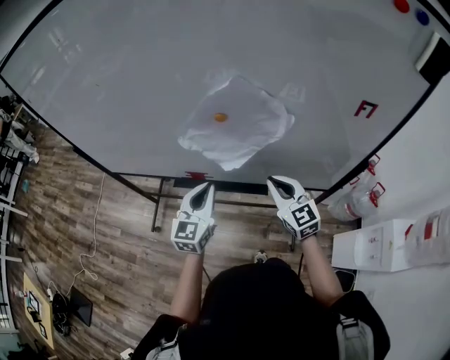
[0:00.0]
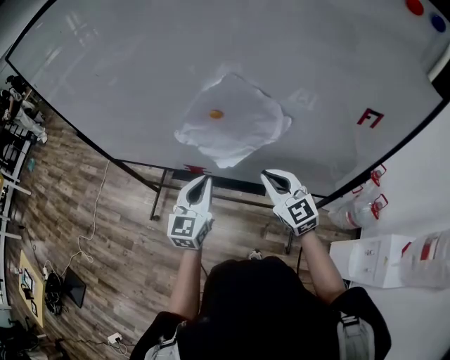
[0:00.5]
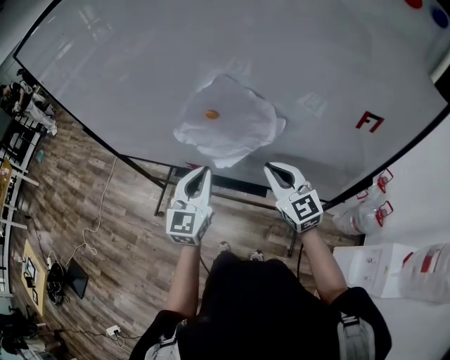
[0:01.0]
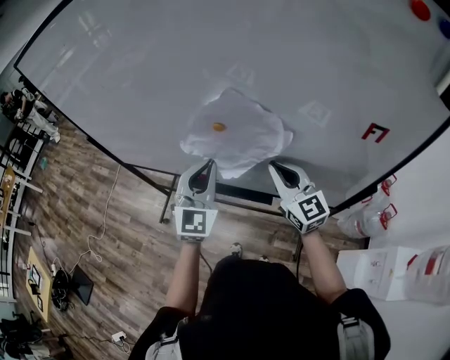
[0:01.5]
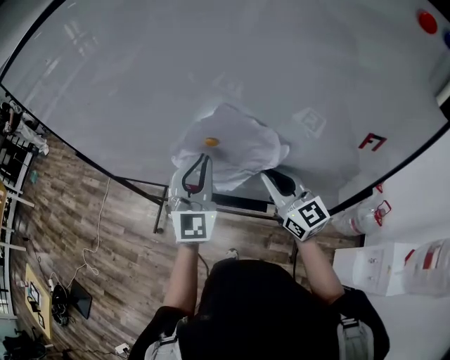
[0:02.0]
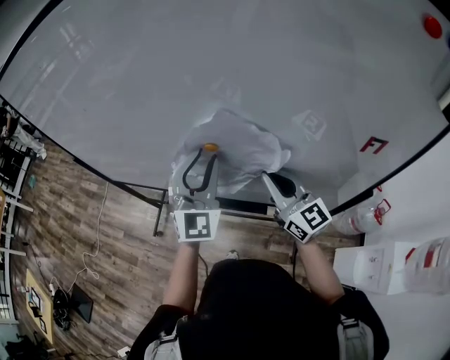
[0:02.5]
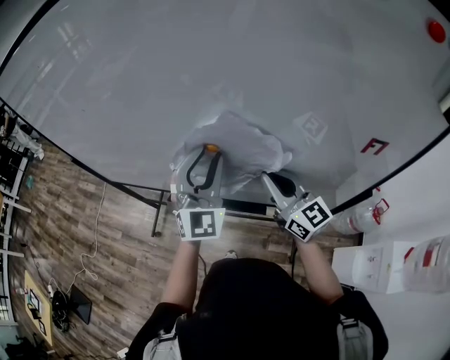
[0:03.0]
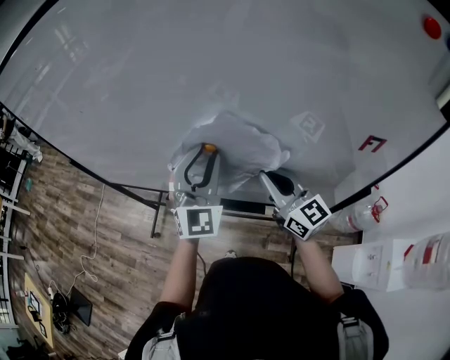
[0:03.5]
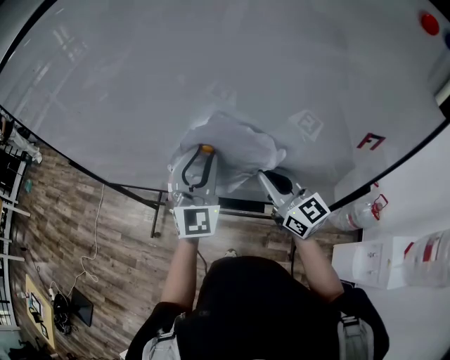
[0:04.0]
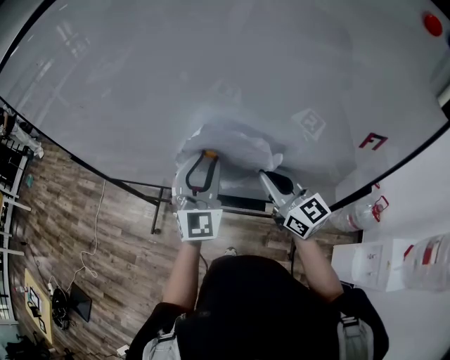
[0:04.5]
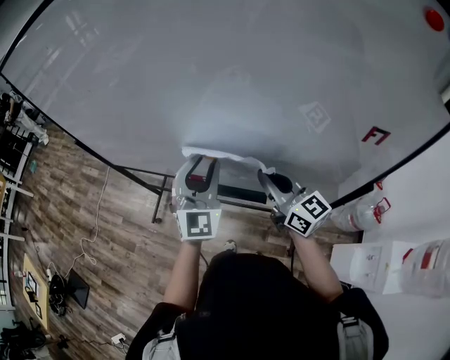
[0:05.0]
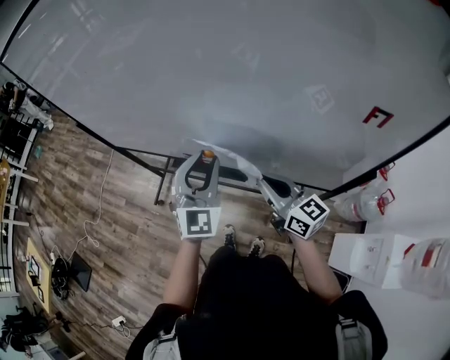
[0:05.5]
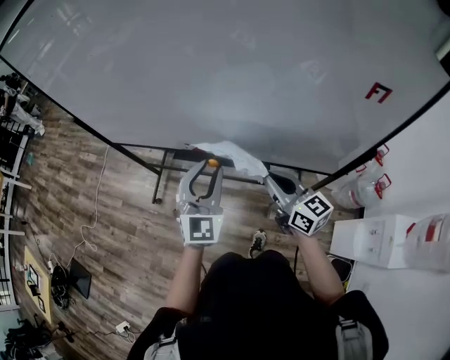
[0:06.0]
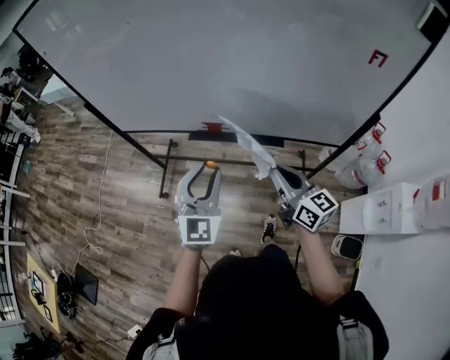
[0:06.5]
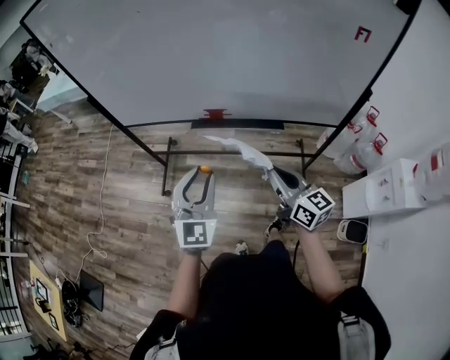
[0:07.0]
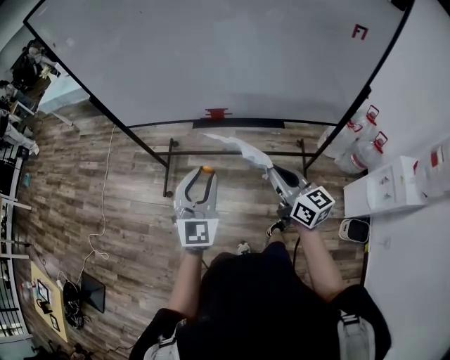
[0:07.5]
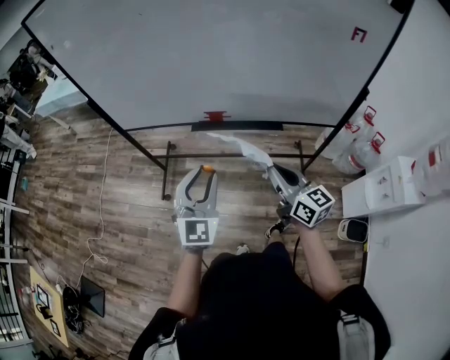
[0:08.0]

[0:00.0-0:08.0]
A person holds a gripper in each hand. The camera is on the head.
0:00.0 to 0:02.0: The right gripper is displaced upward and forward by approximately 10 cm, and turns by some 20 degrees. The left gripper heads upward, forward and to the right, covering about 15 cm, and rotates approximately 40 degrees.
0:02.0 to 0:04.0: The left gripper opens up.
0:04.0 to 0:06.0: The right gripper goes some 15 cm backward and downward; the left gripper travels backward, downward and to the left by approximately 20 cm.
0:06.0 to 0:08.0: The right gripper travels backward and to the left by about 25 cm. The left gripper moves to the left and backward, some 25 cm.

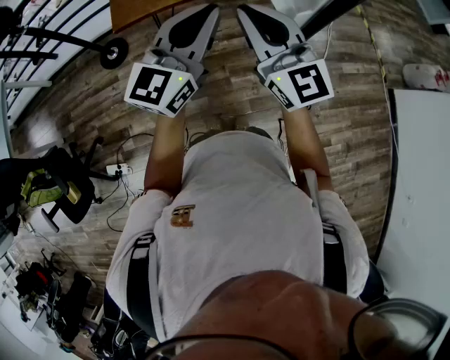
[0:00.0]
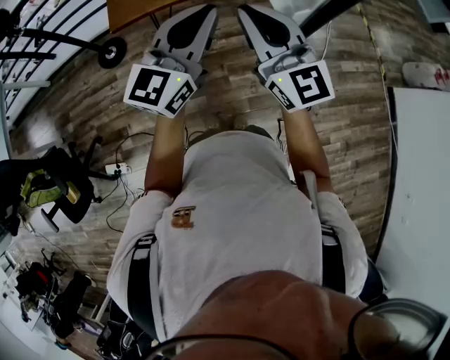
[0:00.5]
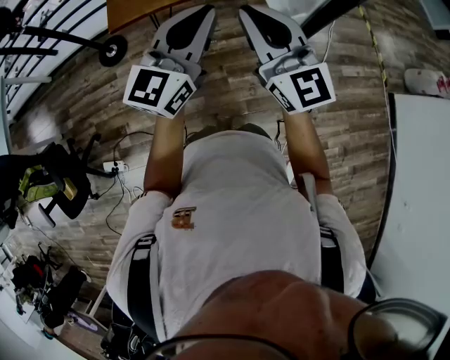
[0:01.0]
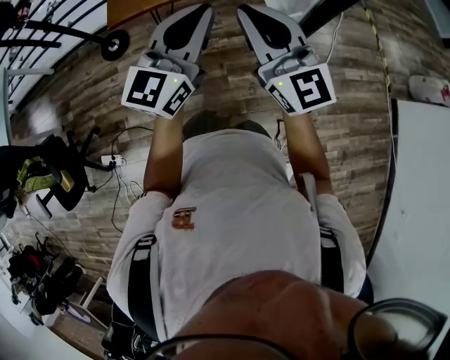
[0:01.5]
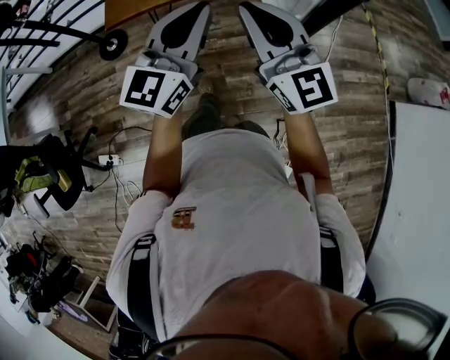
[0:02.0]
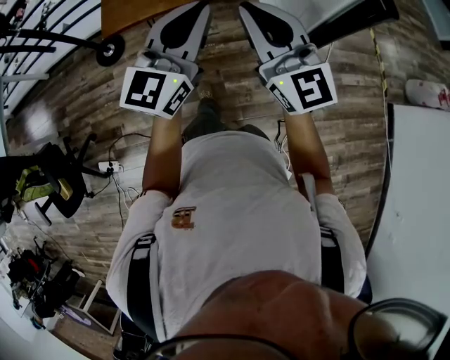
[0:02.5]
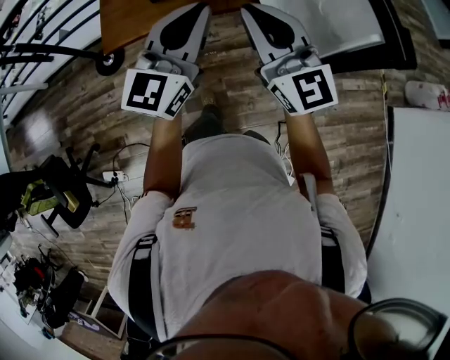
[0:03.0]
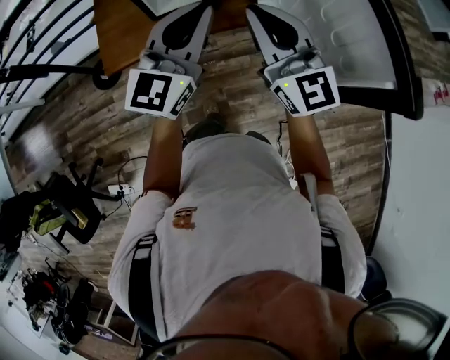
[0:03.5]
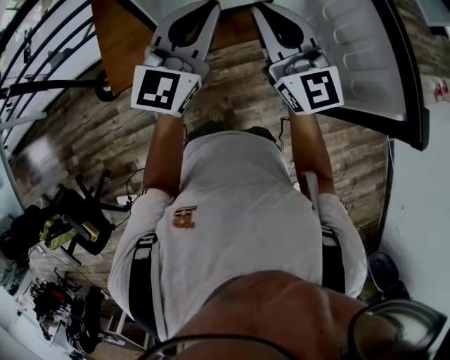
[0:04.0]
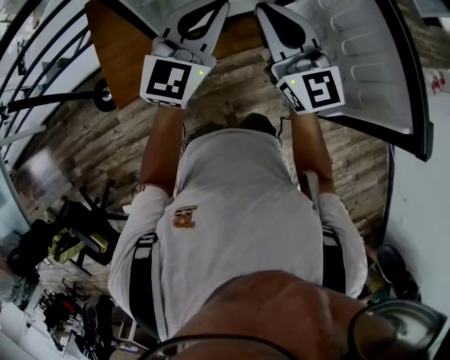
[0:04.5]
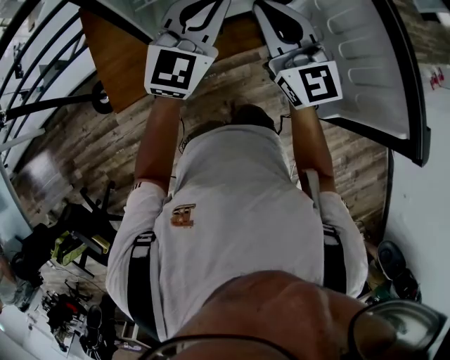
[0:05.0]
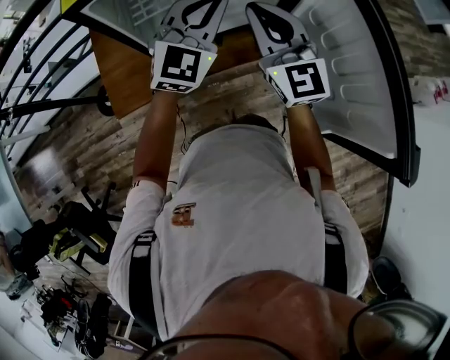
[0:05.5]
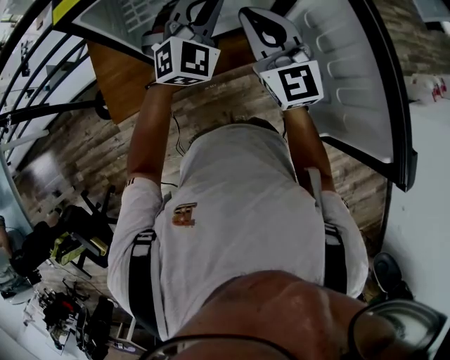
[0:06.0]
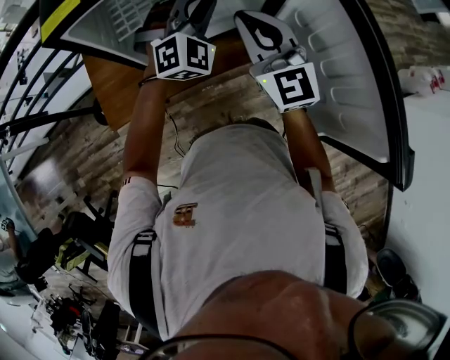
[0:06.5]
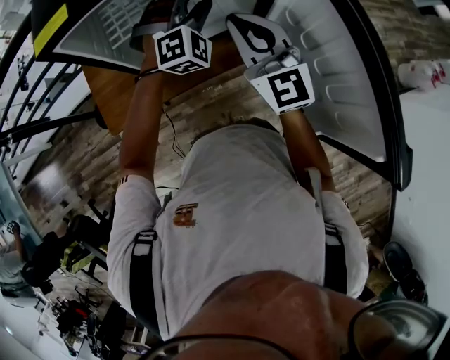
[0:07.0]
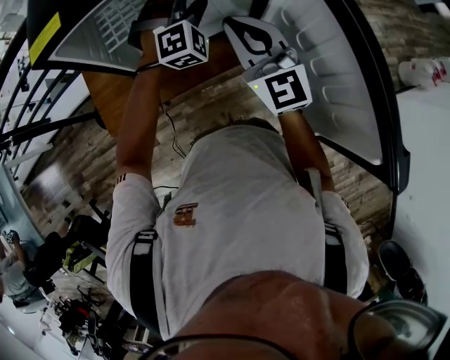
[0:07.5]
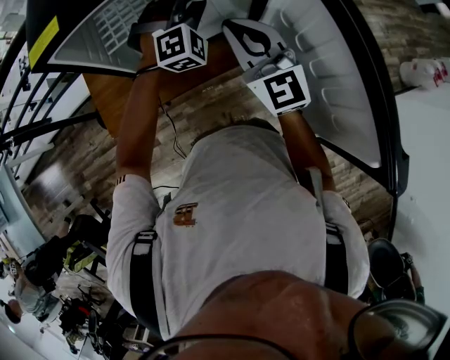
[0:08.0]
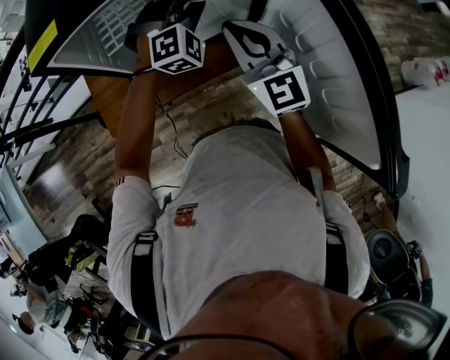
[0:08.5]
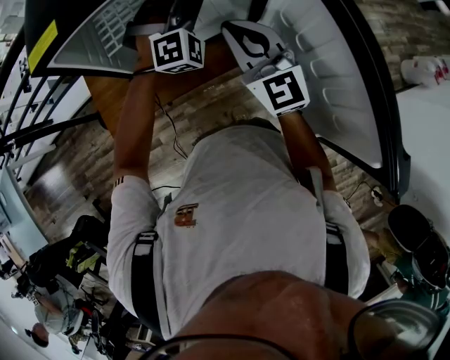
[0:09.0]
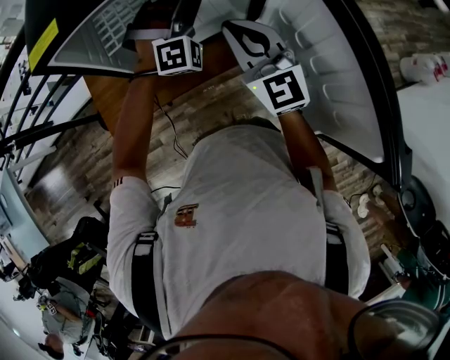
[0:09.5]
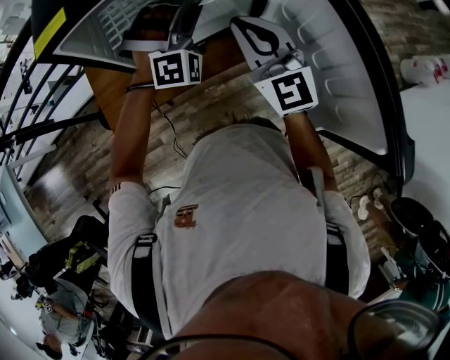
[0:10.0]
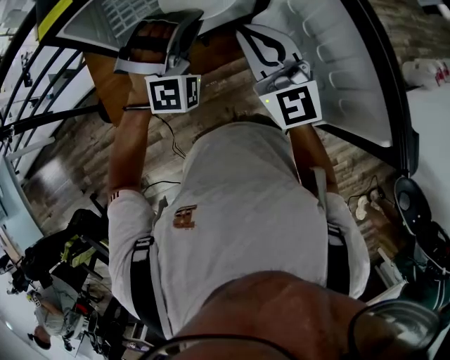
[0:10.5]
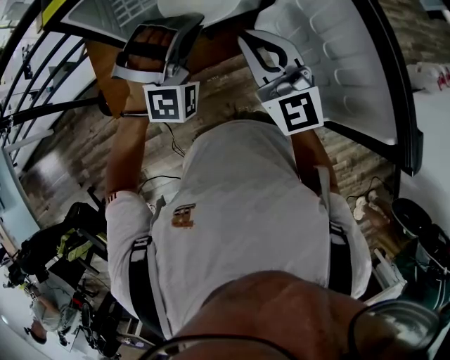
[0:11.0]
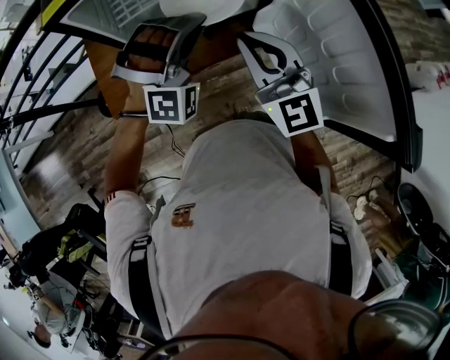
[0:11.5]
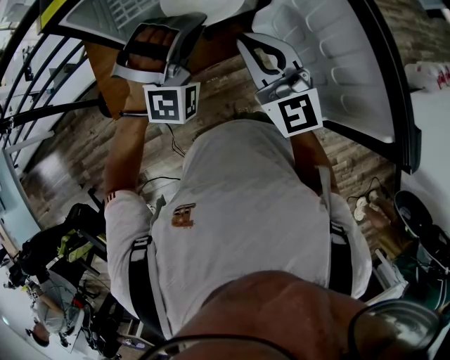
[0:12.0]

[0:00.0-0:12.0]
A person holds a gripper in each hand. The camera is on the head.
0:00.0 to 0:02.0: Both grippers travel together to the right, roughly 10 cm.
0:02.0 to 0:04.0: Both grippers move forward, approximately 35 cm.
0:04.0 to 0:06.0: The grippers both shift forward by approximately 15 cm. The left gripper turns by some 40 degrees.
0:06.0 to 0:08.0: The left gripper shifts approximately 10 cm downward and forward, and rotates roughly 30 degrees.
0:08.0 to 0:10.0: The left gripper changes place by roughly 5 cm.
0:10.0 to 0:12.0: Both grippers travel together backward, roughly 10 cm.

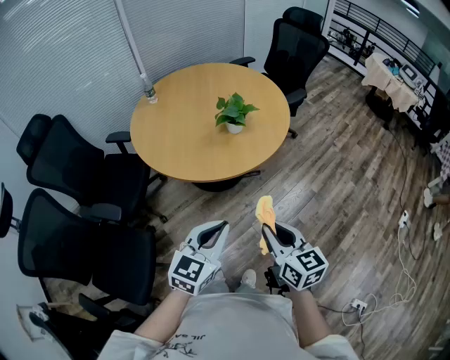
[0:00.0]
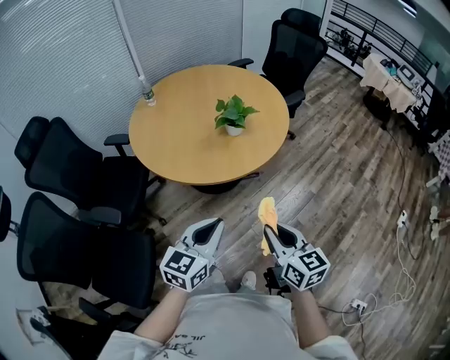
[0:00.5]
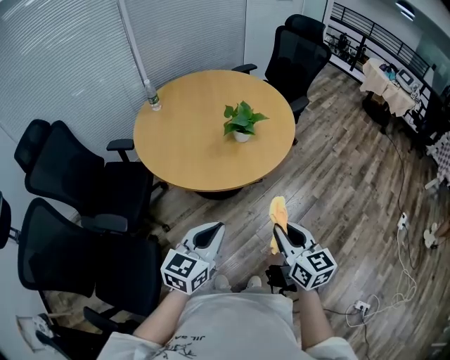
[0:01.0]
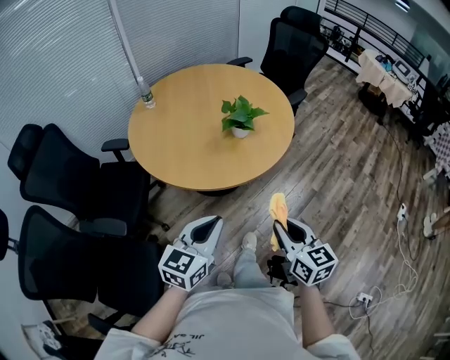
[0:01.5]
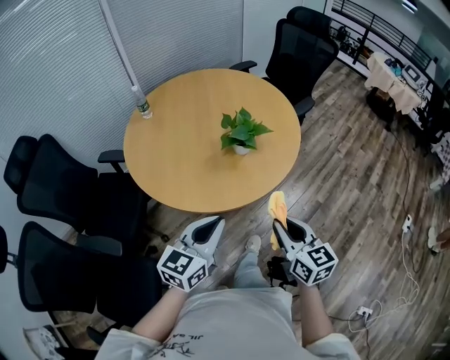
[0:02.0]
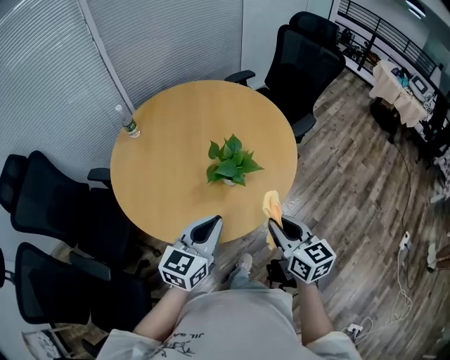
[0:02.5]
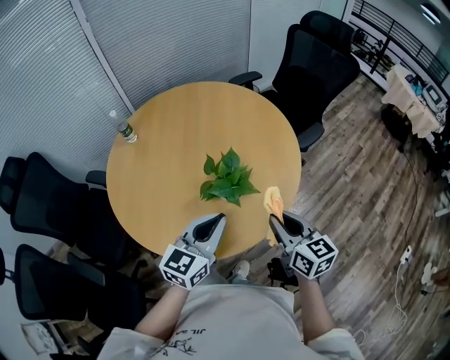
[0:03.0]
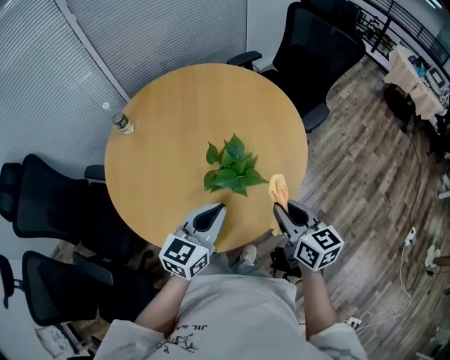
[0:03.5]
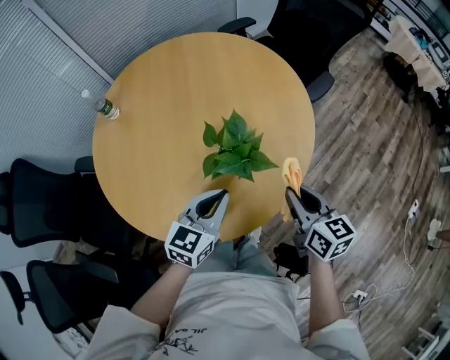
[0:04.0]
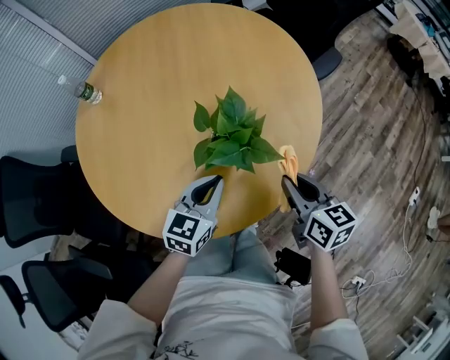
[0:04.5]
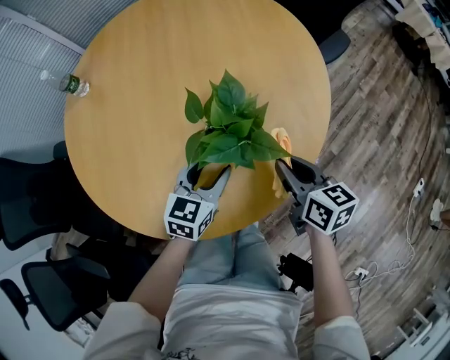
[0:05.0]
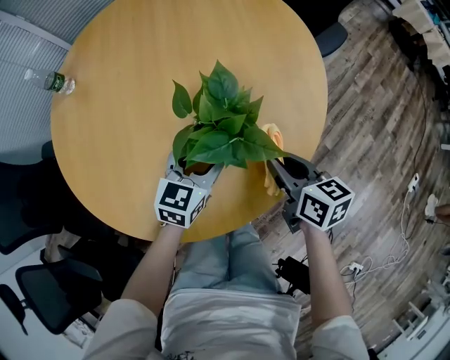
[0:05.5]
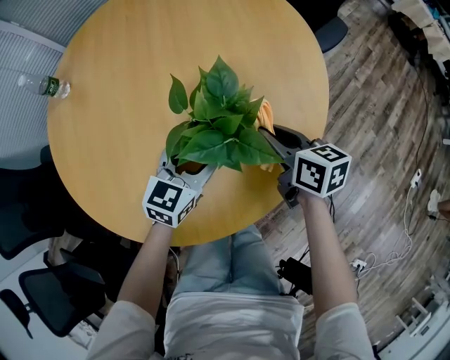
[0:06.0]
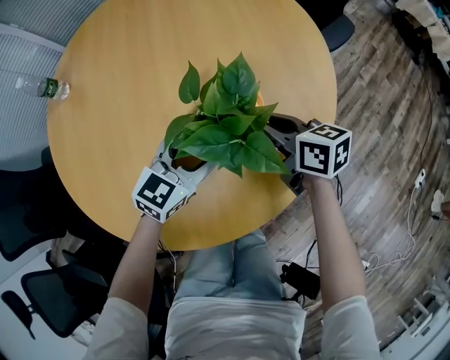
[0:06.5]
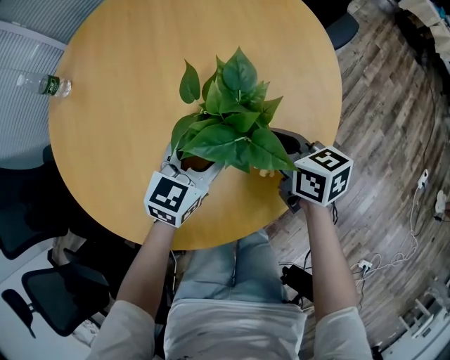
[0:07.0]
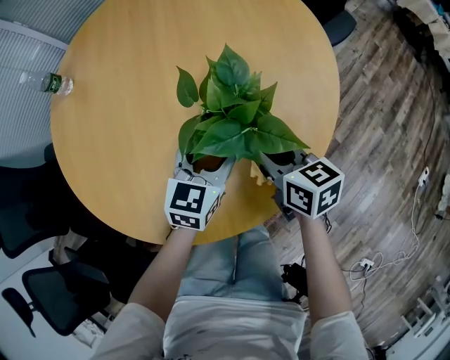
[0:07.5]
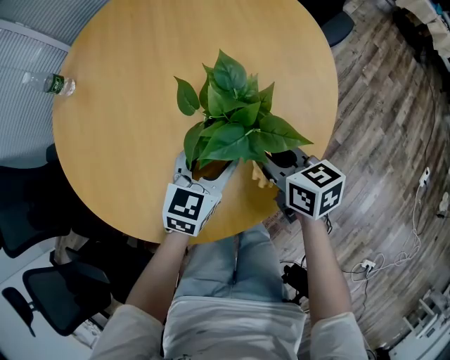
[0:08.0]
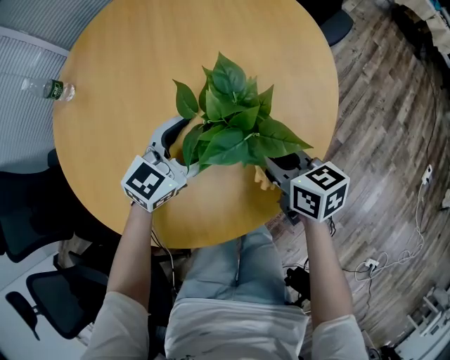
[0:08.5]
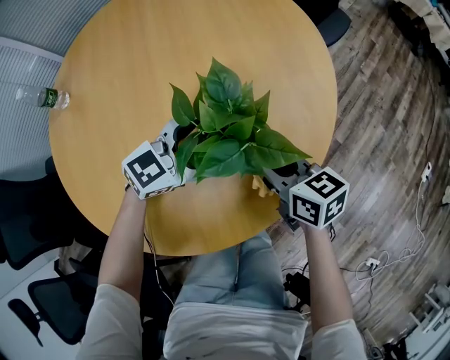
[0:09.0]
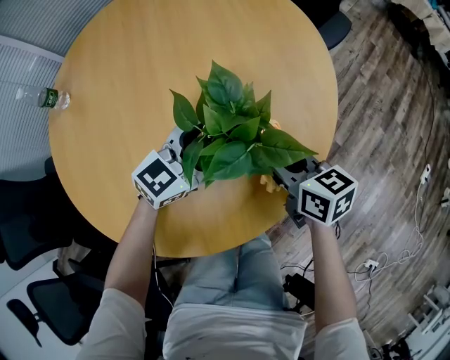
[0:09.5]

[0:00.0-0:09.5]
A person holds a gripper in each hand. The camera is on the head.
0:00.0 to 0:02.0: The right gripper shifts about 15 cm forward; the left gripper shifts roughly 20 cm forward and to the left.
0:02.0 to 0:04.0: Both grippers travel together forward, about 30 cm.
0:04.0 to 0:05.5: The left gripper travels downward and forward by some 15 cm, and opens its fingers. The right gripper heads downward, covering about 15 cm.
0:05.5 to 0:07.5: The right gripper travels to the left by roughly 5 cm, and travels forward and back again, about 10 cm each way.
0:07.5 to 0:09.5: The left gripper changes its angle by about 40 degrees.
